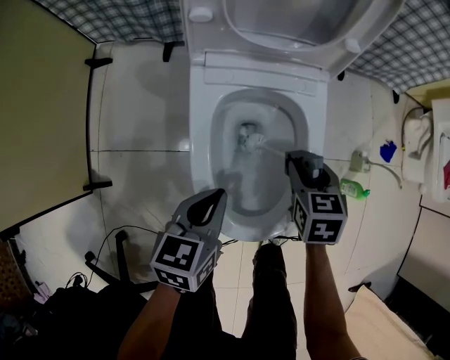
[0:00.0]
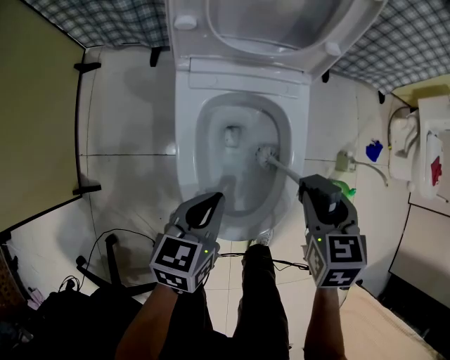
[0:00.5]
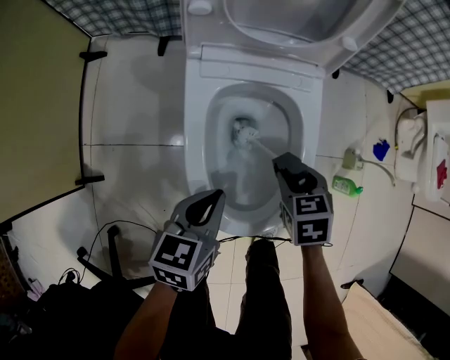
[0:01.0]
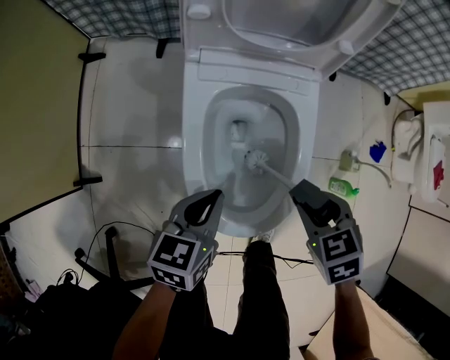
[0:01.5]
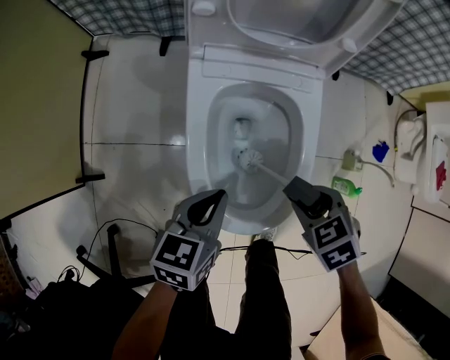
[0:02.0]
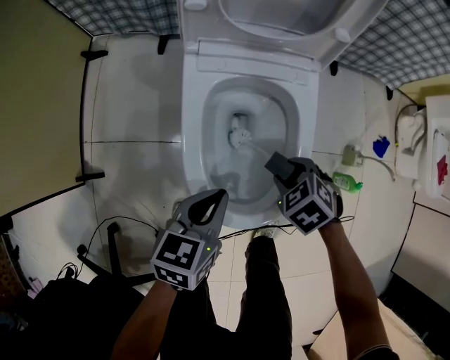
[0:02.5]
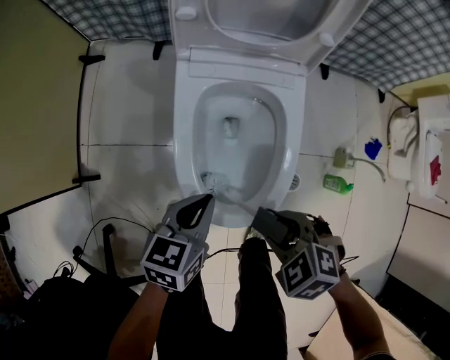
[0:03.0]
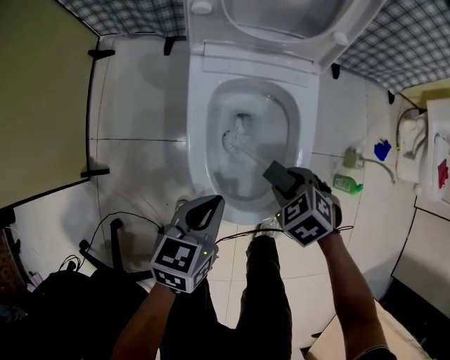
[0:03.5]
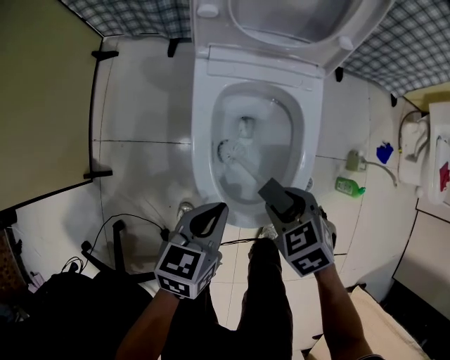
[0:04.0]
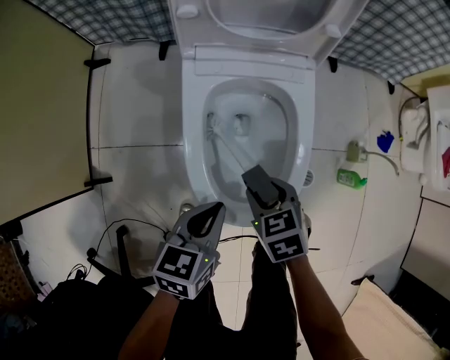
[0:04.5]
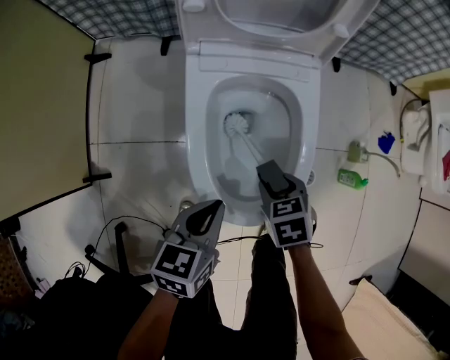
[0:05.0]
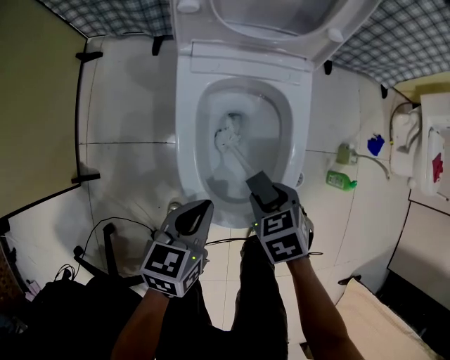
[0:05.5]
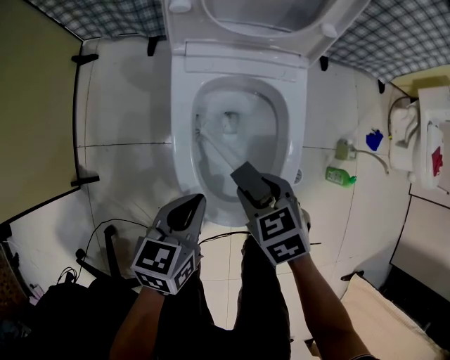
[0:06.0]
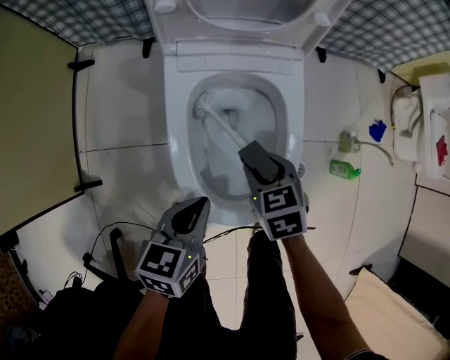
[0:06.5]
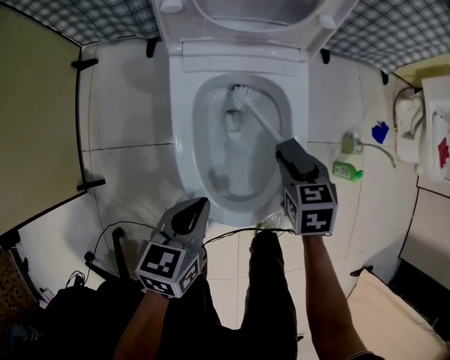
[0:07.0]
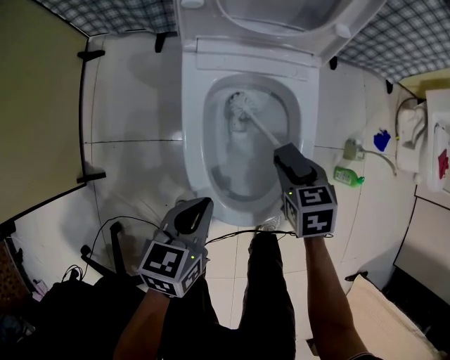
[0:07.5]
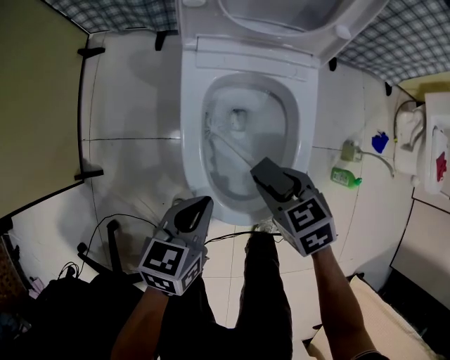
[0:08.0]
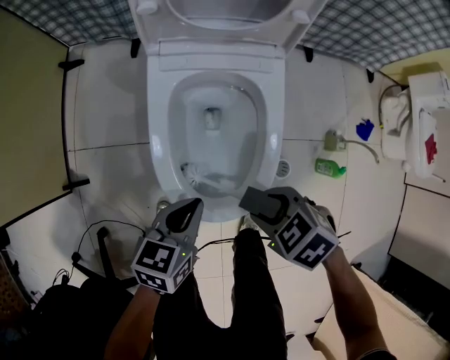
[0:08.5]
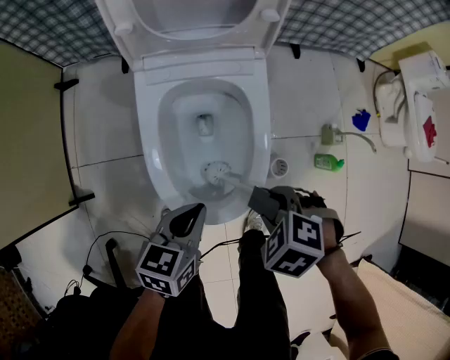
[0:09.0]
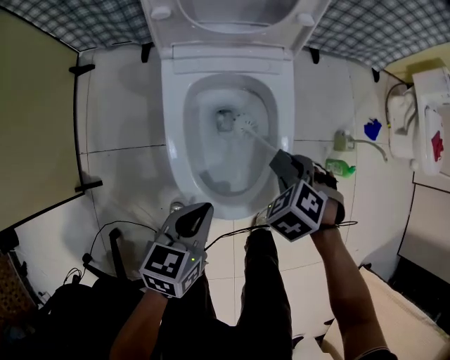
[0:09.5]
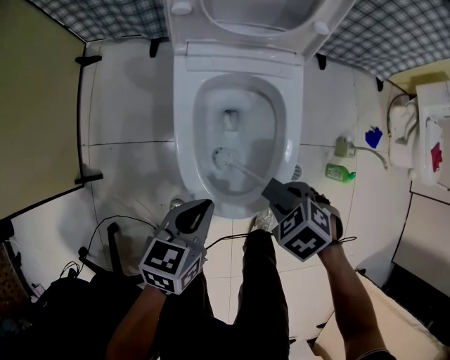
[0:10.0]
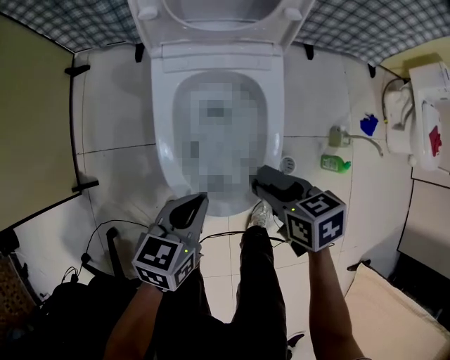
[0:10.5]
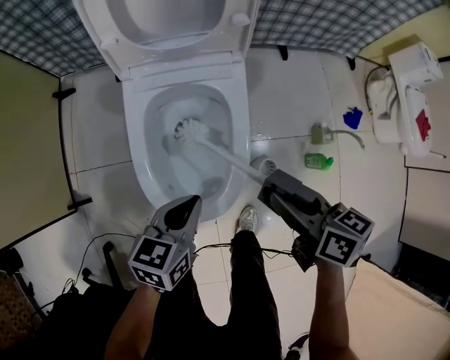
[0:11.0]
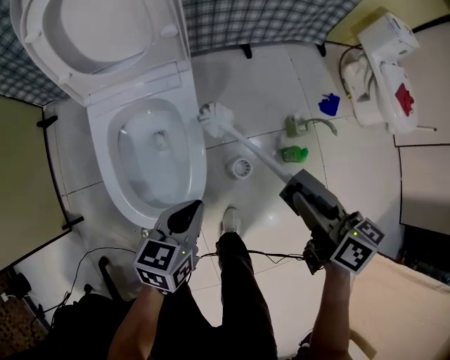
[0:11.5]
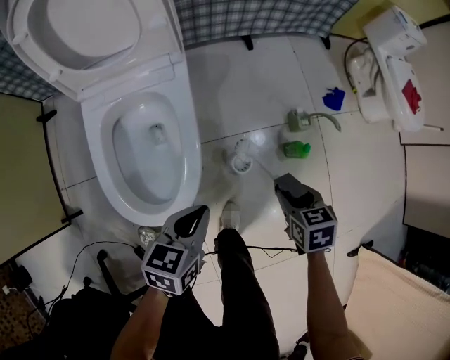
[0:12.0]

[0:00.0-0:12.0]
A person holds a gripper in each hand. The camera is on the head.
0:00.0 to 0:02.0: The right gripper goes up and down, some 10 cm each way, reversing 2 times, and swivels approximately 40 degrees.
0:02.0 to 0:04.0: The right gripper moves up and down over some 10 cm, changing direction 2 times.
0:06.0 to 0:08.0: The right gripper reaches roughly 10 cm to the right, then returns.
0:08.0 to 0:10.0: The right gripper moves some 10 cm, and rotates some 30 degrees.
0:10.0 to 0:12.0: The left gripper moves some 25 cm. Meanwhile the right gripper reaches some 15 cm upward, then returns, and rotates around the line of its fingers by roughly 50 degrees, clockwise from behind.

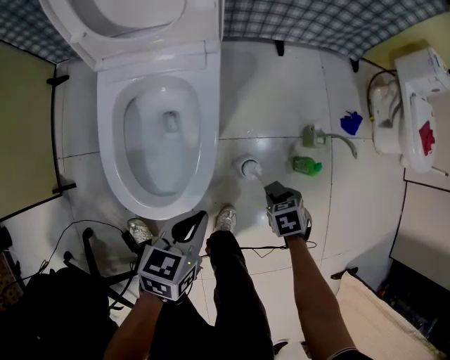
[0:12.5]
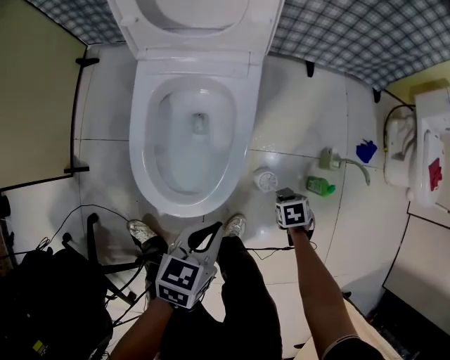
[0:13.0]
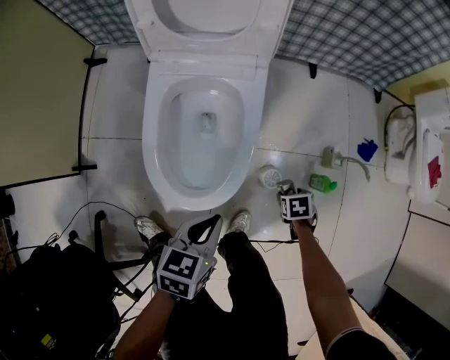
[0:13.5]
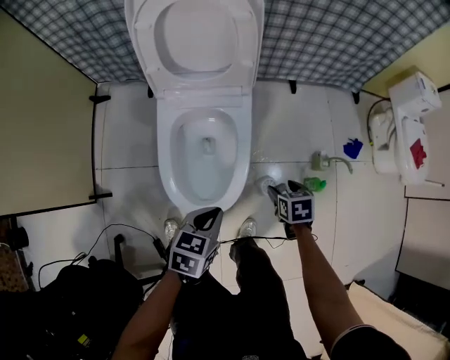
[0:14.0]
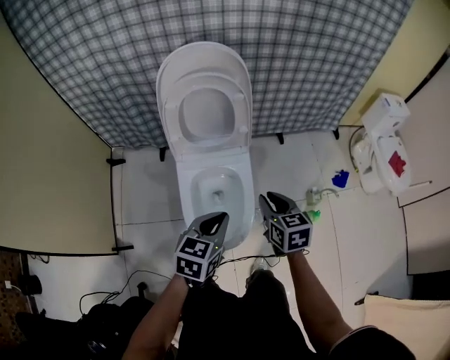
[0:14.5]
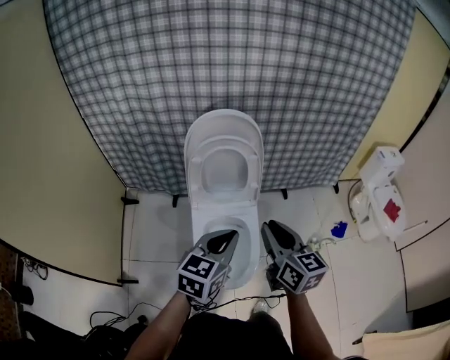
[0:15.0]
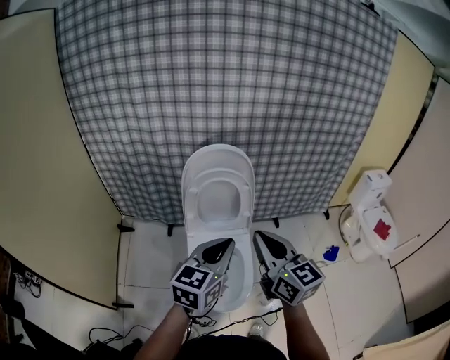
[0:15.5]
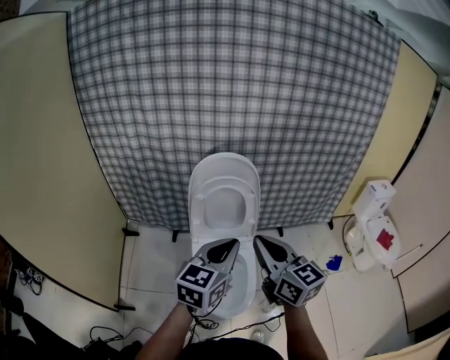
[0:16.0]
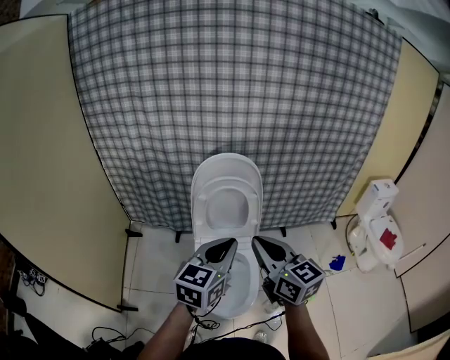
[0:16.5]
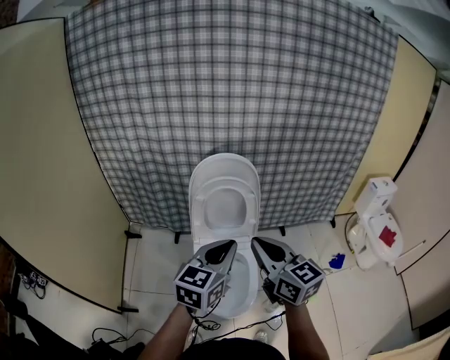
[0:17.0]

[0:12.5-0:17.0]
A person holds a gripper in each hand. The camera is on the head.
0:12.5 to 0:14.5: The right gripper shifts roughly 40 cm upward, angles its fingers upward, by some 40 degrees, and opens, then closes once more. The left gripper shifts roughly 25 cm upward.
0:14.5 to 0:17.0: Both grippers move upward, approximately 30 cm. The right gripper tips its fingers upward by about 30 degrees. Meanwhile the left gripper swivels approximately 20 degrees.

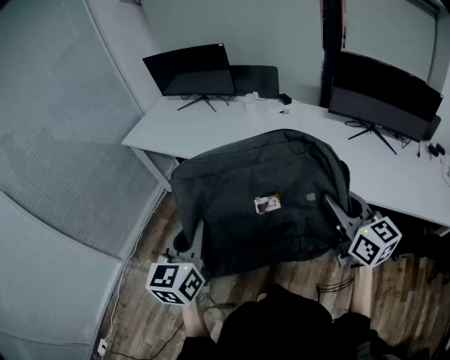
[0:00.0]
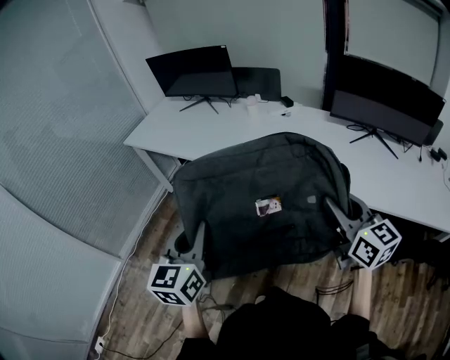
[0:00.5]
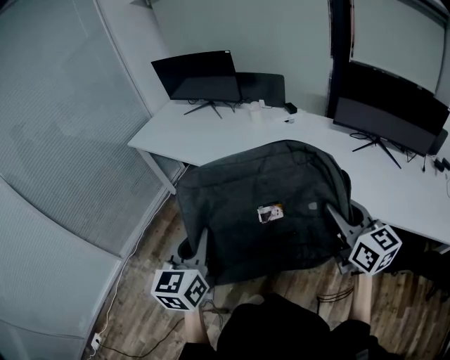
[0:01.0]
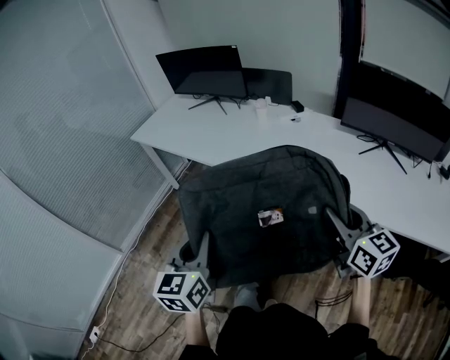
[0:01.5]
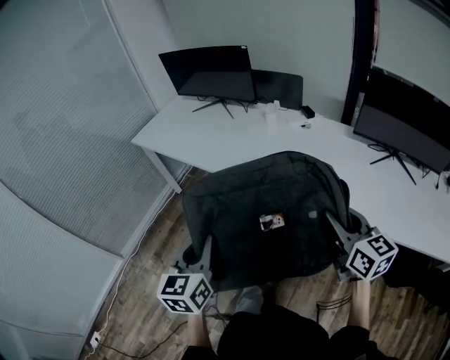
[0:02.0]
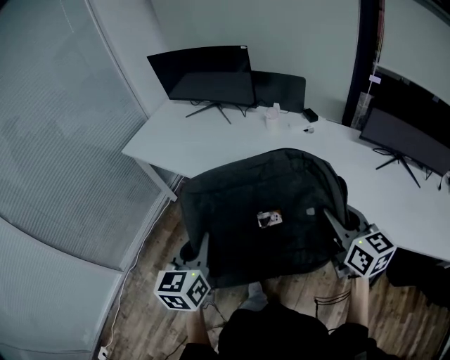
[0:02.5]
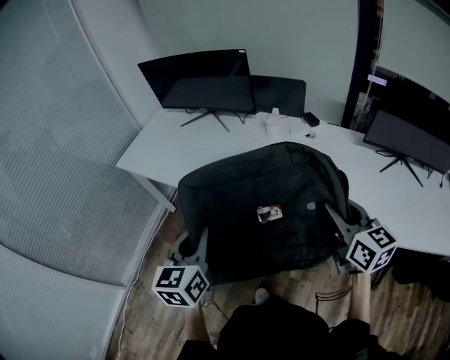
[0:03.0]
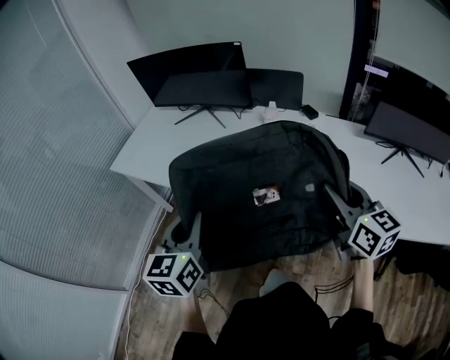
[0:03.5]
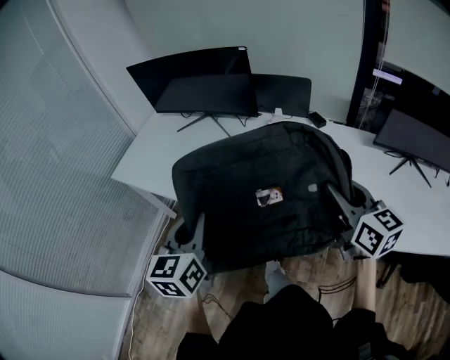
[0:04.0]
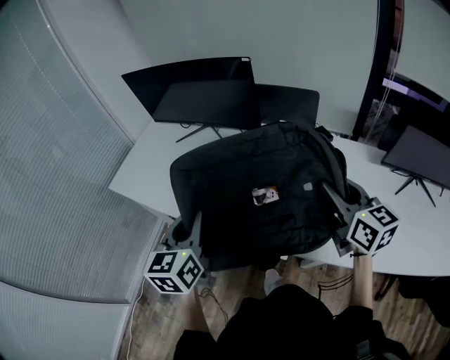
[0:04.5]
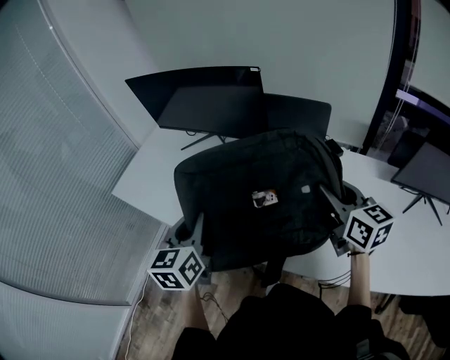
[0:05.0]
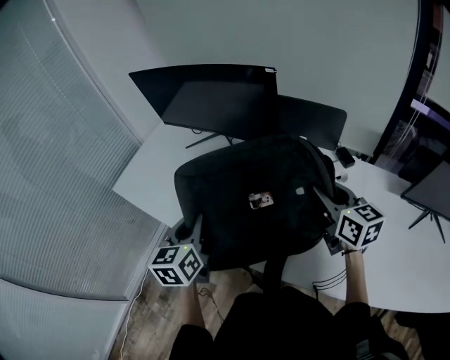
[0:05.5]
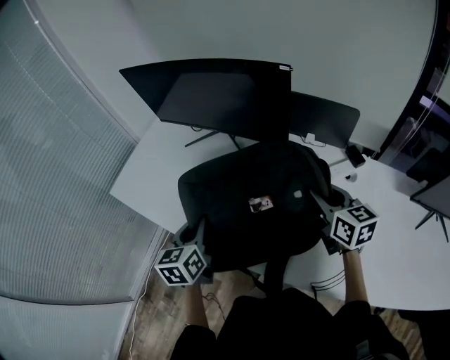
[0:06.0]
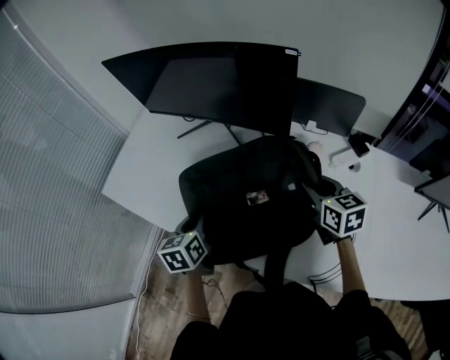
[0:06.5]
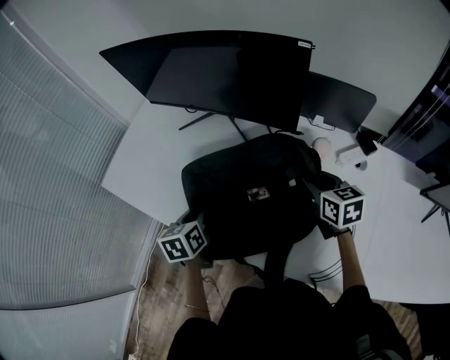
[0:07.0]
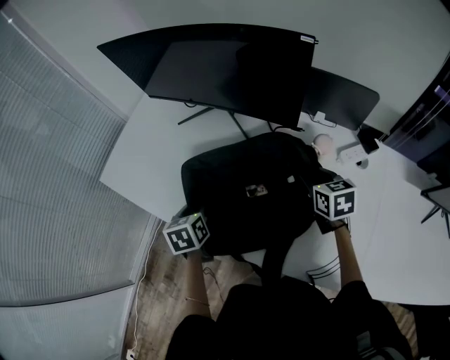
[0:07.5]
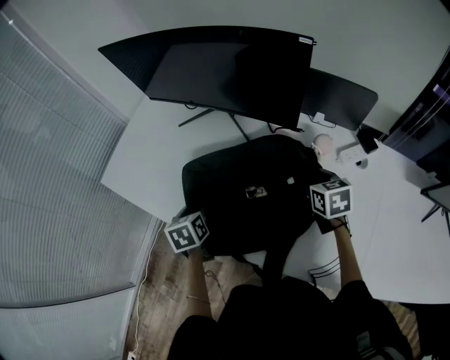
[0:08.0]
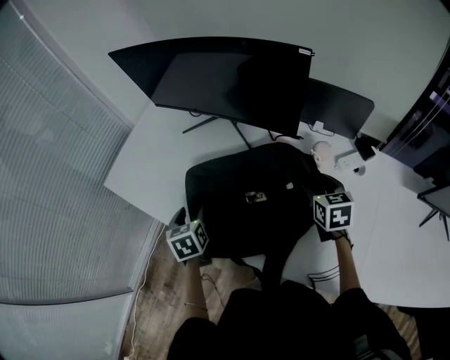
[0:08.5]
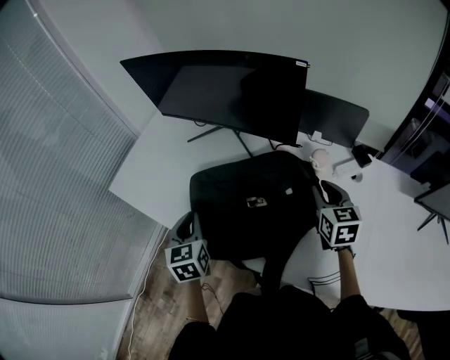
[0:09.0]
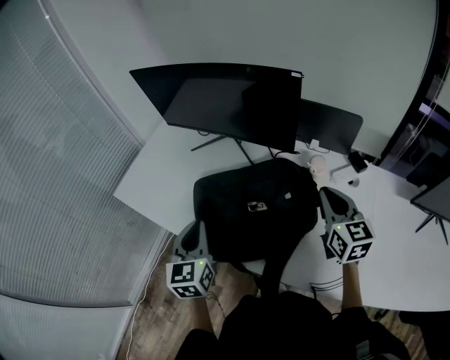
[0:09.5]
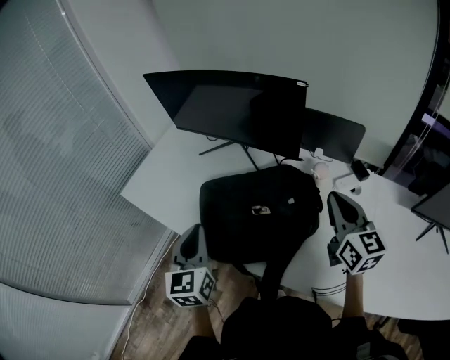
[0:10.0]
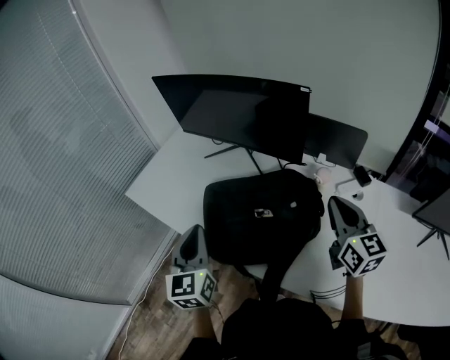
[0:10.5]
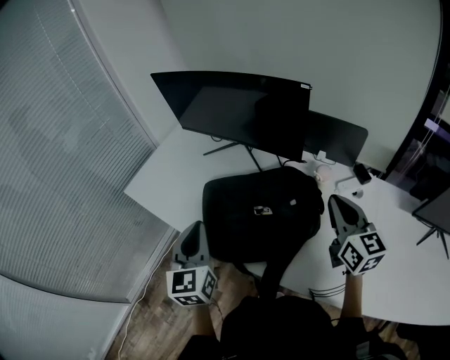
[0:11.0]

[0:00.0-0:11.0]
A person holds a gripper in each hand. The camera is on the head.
0:00.0 to 0:02.0: The grippers both shift forward by approximately 10 cm.
0:02.0 to 0:03.5: The right gripper shifts roughly 20 cm forward and to the left. The left gripper travels forward by some 25 cm.
0:03.5 to 0:05.5: Both grippers travel together forward, roughly 30 cm.
0:05.5 to 0:07.5: The two grippers go about 20 cm downward and forward. The left gripper rotates roughly 30 degrees. Meanwhile the right gripper changes its angle by approximately 30 degrees.
0:07.5 to 0:09.0: The two grippers go some 5 cm upward. The left gripper changes its angle by about 20 degrees, and opens and closes again; the right gripper opens and closes again.
0:09.0 to 0:11.0: Both grippers move upward and backward, some 15 cm. The right gripper swivels about 20 degrees, and closes up.
